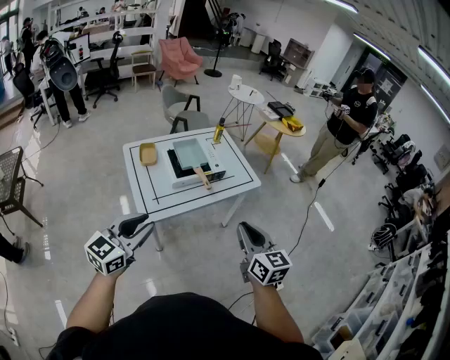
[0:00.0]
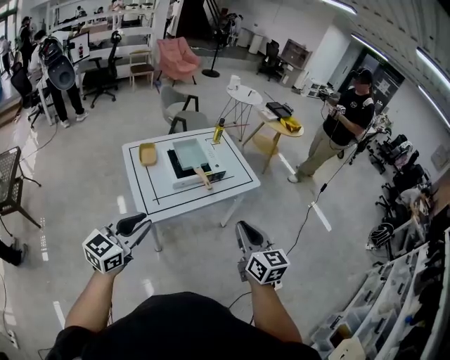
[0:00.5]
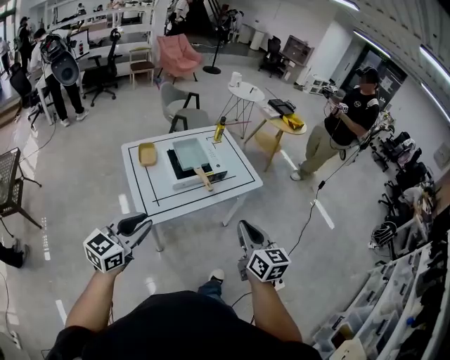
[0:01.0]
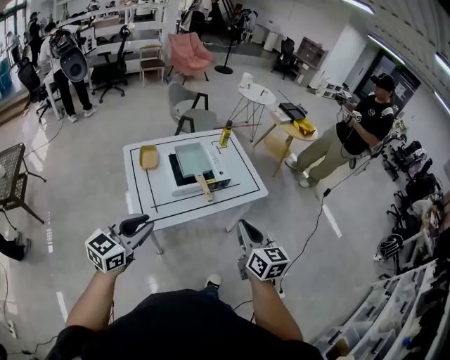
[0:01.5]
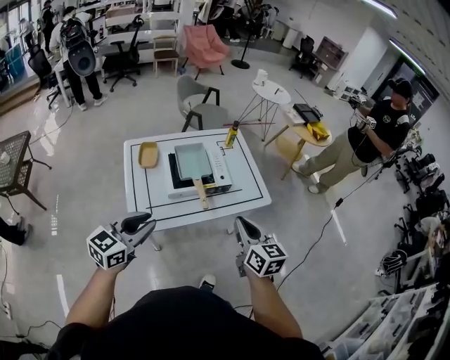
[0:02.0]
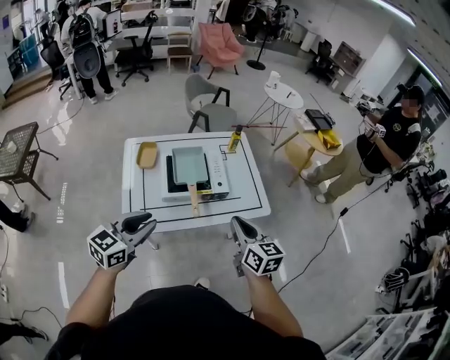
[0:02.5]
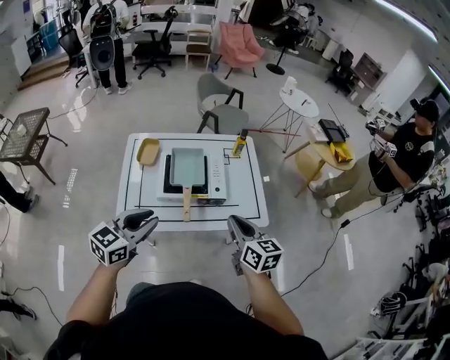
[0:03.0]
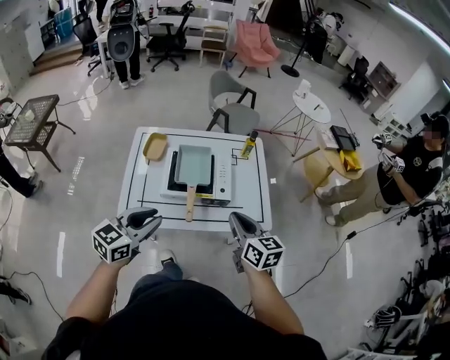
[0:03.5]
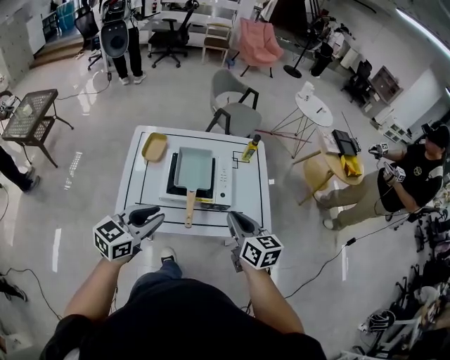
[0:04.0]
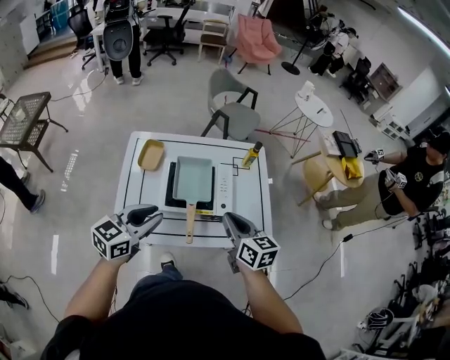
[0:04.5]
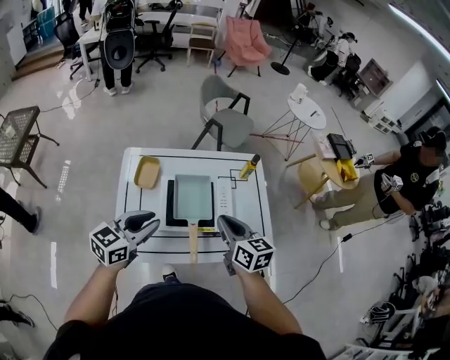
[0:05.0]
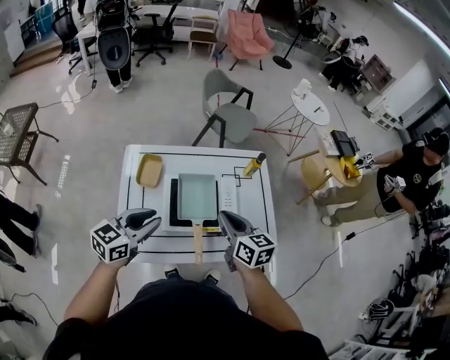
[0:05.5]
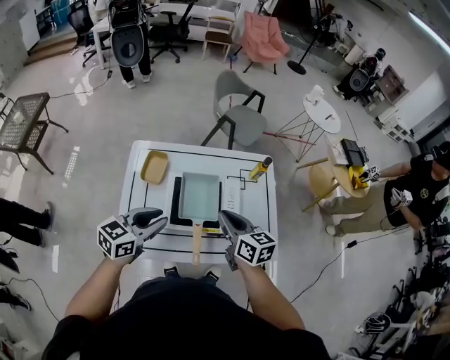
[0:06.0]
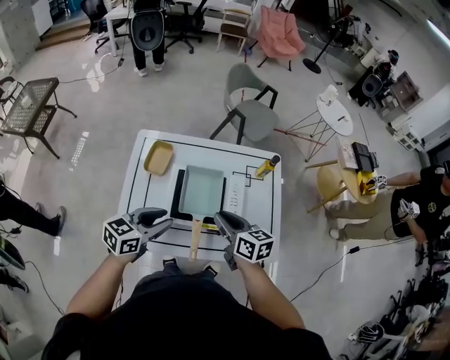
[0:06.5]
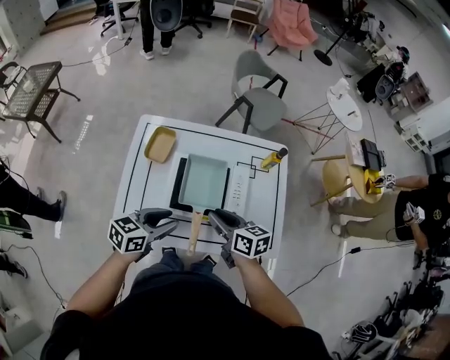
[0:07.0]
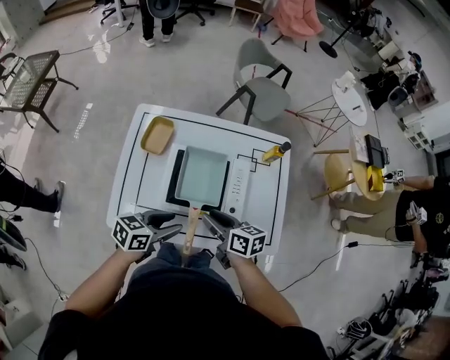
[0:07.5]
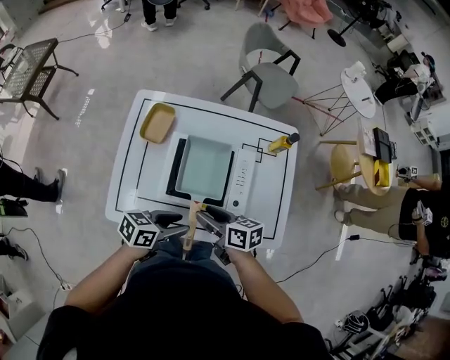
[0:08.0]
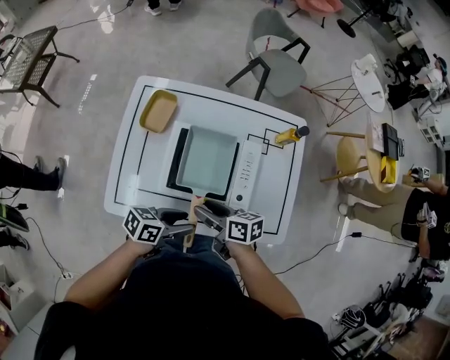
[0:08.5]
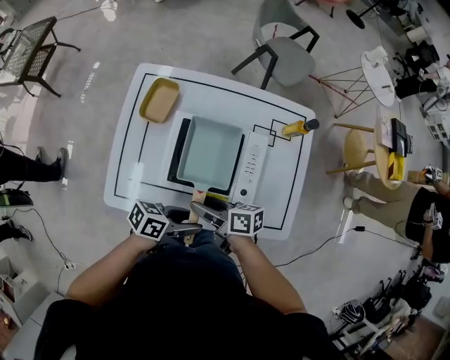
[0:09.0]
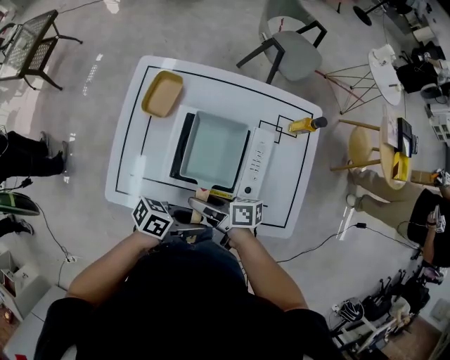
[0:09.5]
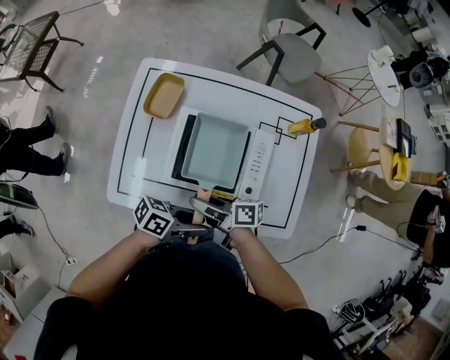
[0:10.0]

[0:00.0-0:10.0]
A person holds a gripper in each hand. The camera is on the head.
0:00.0 to 0:02.0: The left gripper moves forward and downward, some 15 cm, while the right gripper travels forward by some 20 cm.
0:02.0 to 0:04.0: The right gripper shifts some 15 cm forward, and turns by about 20 degrees; the left gripper heads forward and to the right, covering about 15 cm.
0:04.0 to 0:06.0: The right gripper heads forward and to the left, covering approximately 15 cm. The left gripper moves forward, about 15 cm.
0:06.0 to 0:08.0: The grippers both shift downward by approximately 15 cm. The right gripper changes its angle by roughly 30 degrees, and opens its fingers. The left gripper swivels about 30 degrees, and opens its fingers.
0:08.0 to 0:10.0: The right gripper moves about 5 cm, and swivels some 30 degrees, while the left gripper ends up about 5 cm from where it was, and turns by approximately 20 degrees.

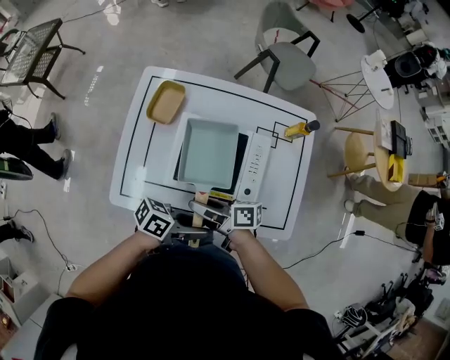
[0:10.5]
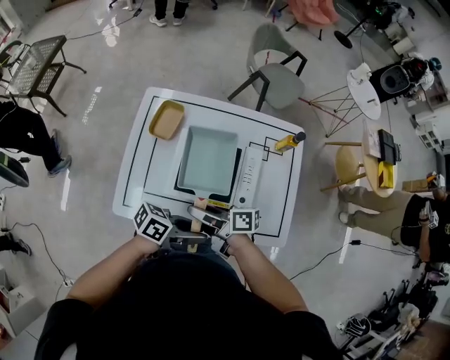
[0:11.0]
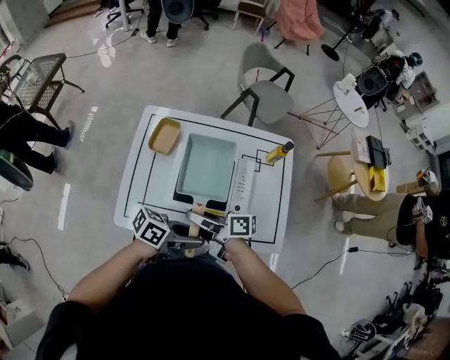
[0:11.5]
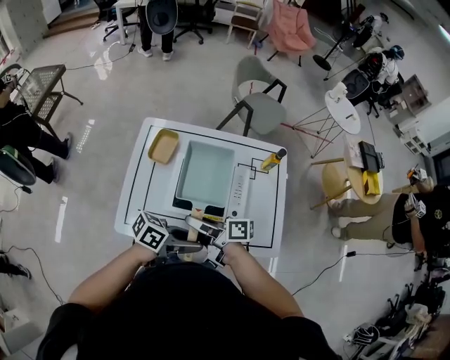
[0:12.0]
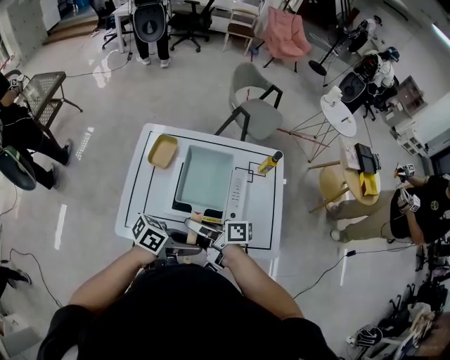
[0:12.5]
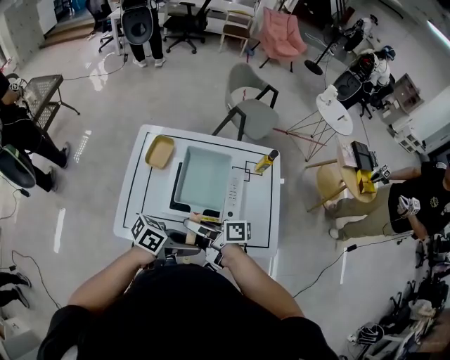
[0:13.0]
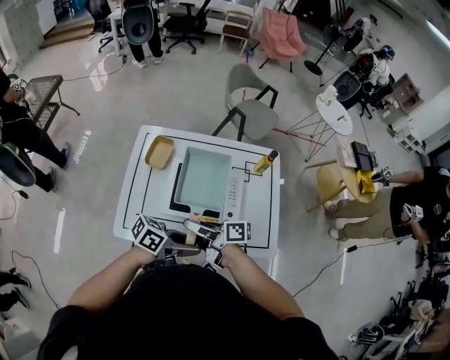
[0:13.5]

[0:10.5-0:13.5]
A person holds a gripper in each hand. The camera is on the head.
0:10.5 to 0:12.0: The grippers both shift upward by some 10 cm.
0:12.0 to 0:13.5: There are only small adjustments of the grippers.

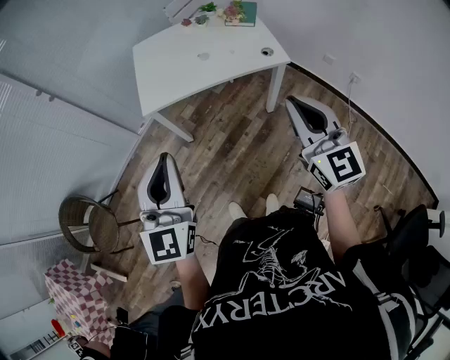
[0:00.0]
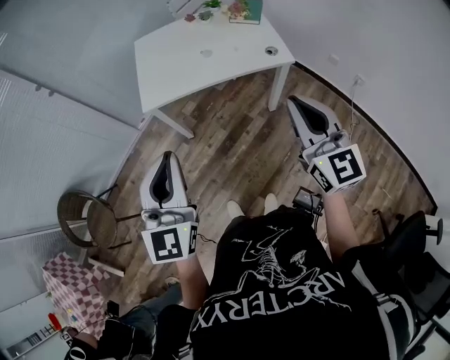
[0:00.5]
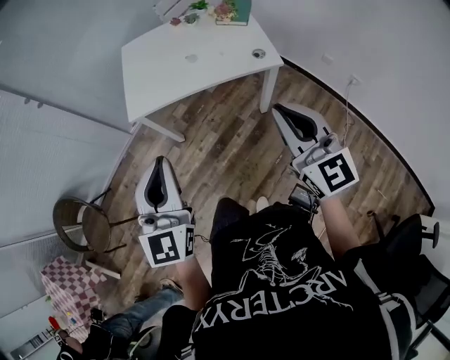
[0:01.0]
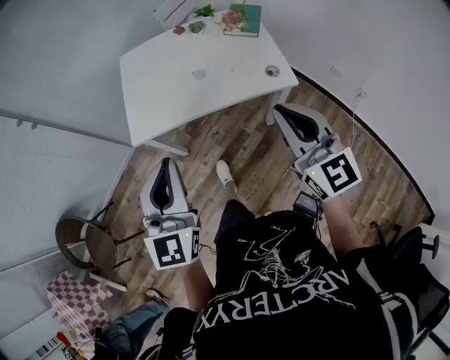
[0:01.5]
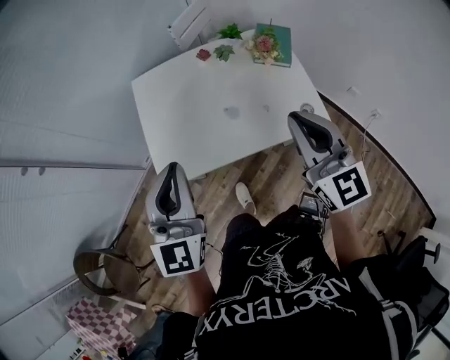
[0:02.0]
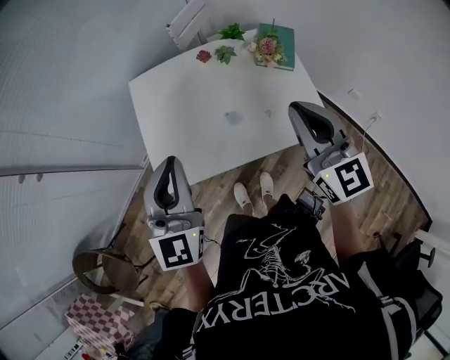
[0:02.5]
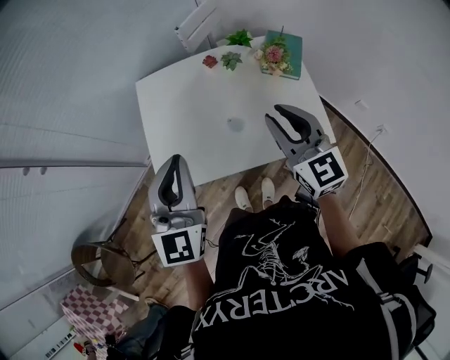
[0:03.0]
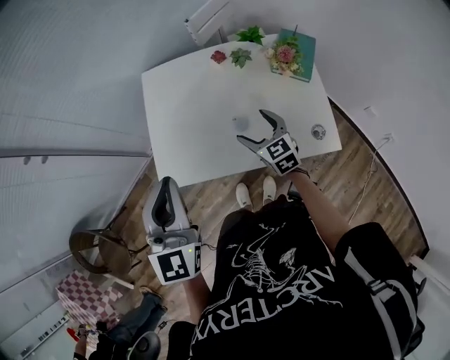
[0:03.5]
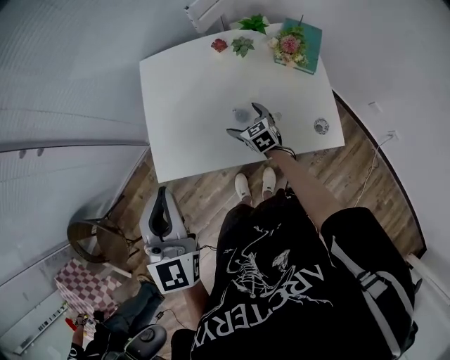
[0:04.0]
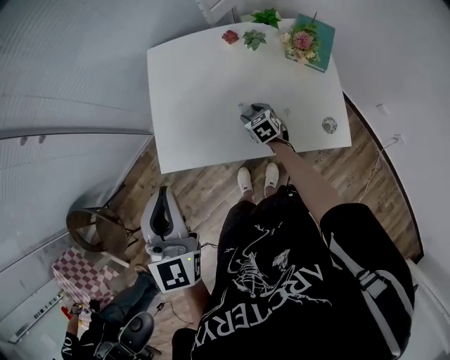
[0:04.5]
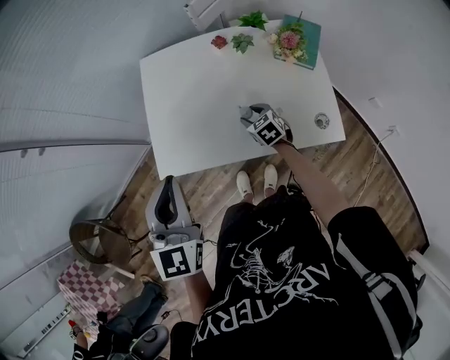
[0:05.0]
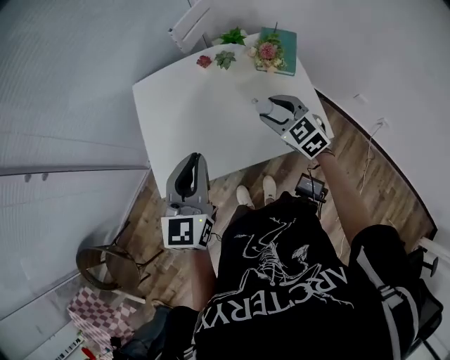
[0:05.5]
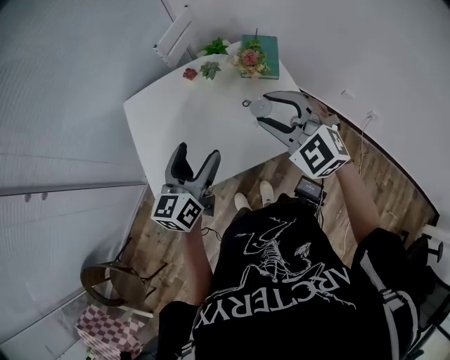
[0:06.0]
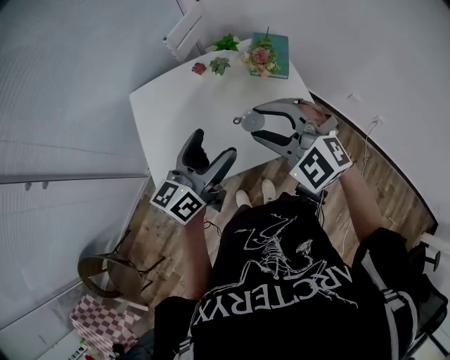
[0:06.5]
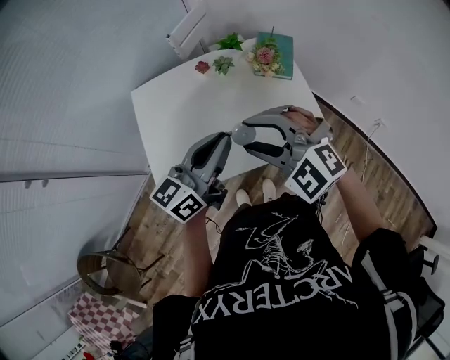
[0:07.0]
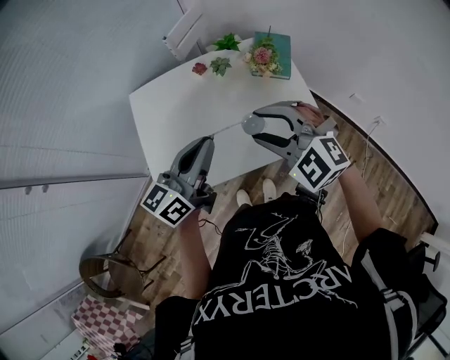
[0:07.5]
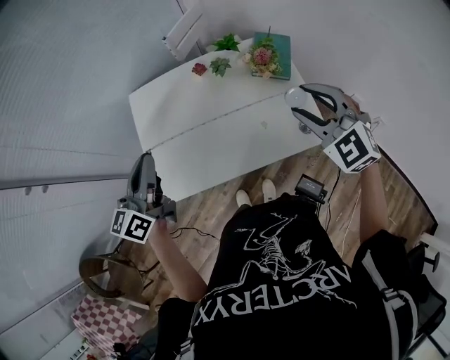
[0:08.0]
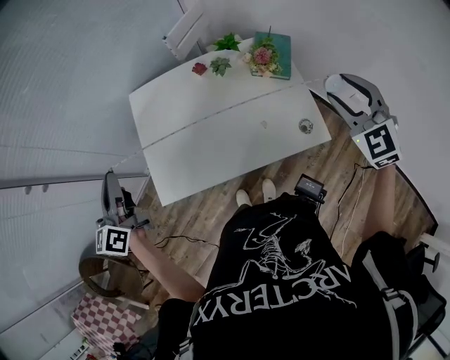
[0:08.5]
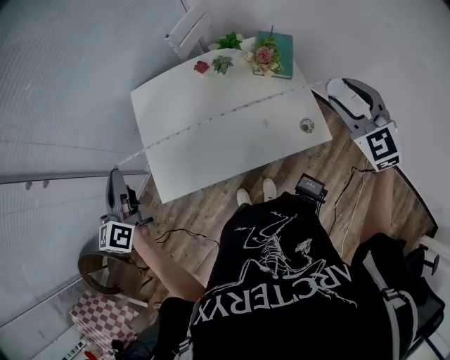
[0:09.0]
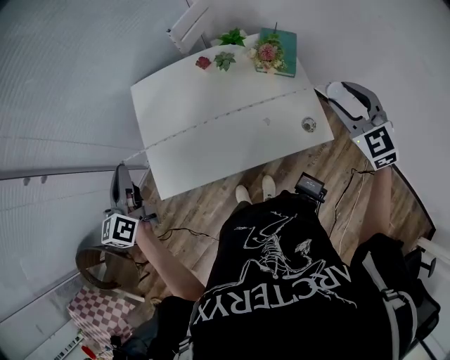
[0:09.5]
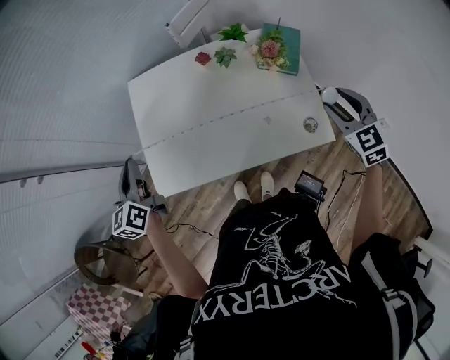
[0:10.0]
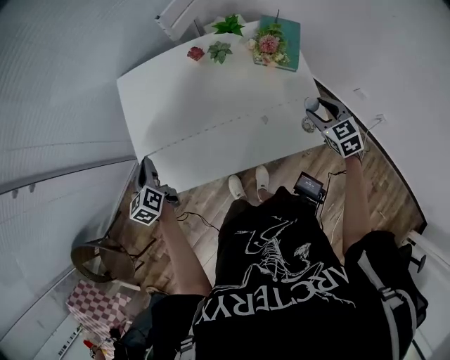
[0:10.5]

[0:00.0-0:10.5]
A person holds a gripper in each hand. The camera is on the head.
0:00.0 to 0:02.0: Both grippers move forward, approximately 40 cm.
0:02.0 to 0:04.0: The right gripper heads downward and forward, covering about 40 cm, angles its fingers downward, by about 40 degrees, and opens its fingers.
0:04.0 to 0:06.5: The right gripper heads upward, covering approximately 35 cm, twists about 50 degrees counterclockwise, seen from behind, and closes up, while the left gripper heads to the right and forward, covering approximately 15 cm, turns by some 60 degrees, and opens.
0:06.5 to 0:08.5: The right gripper shifts approximately 20 cm to the right, and rotates about 30 degrees; the left gripper travels to the left by some 25 cm, rotates about 40 degrees, and closes up.
0:08.5 to 0:10.5: Both grippers travel together downward, about 25 cm. The right gripper swivels some 30 degrees, while the left gripper swivels approximately 30 degrees.

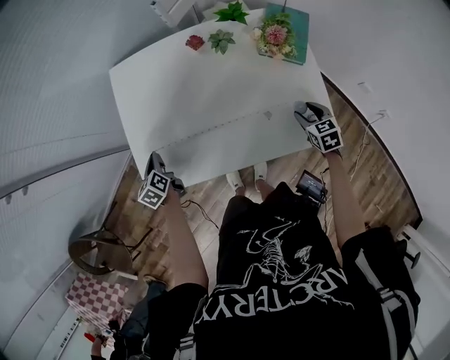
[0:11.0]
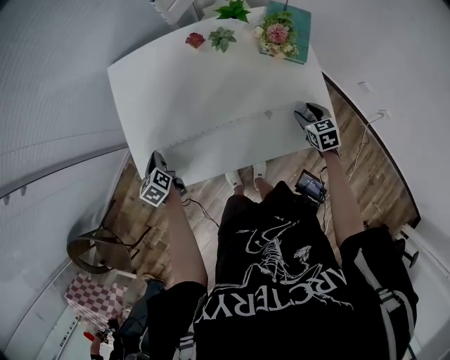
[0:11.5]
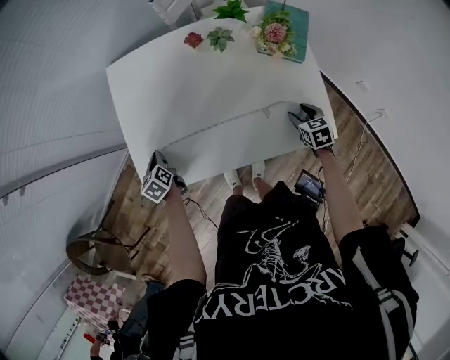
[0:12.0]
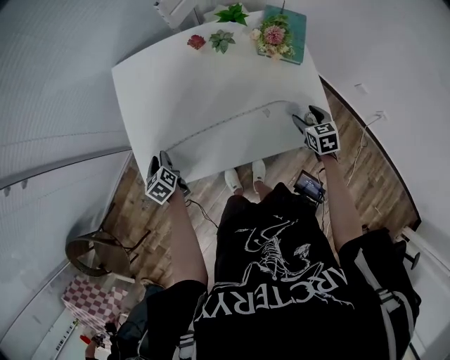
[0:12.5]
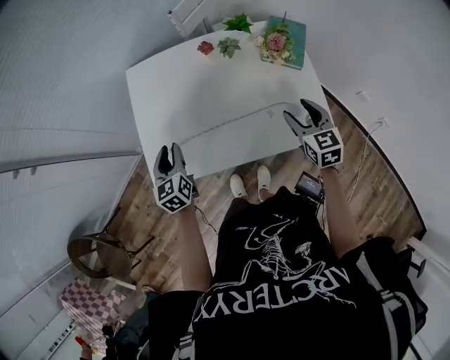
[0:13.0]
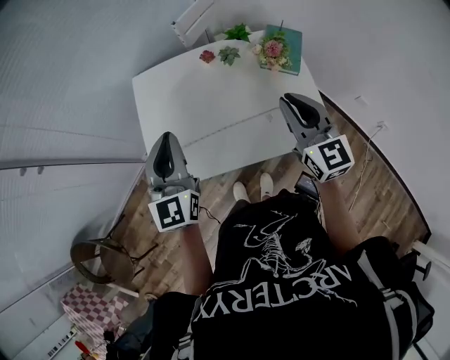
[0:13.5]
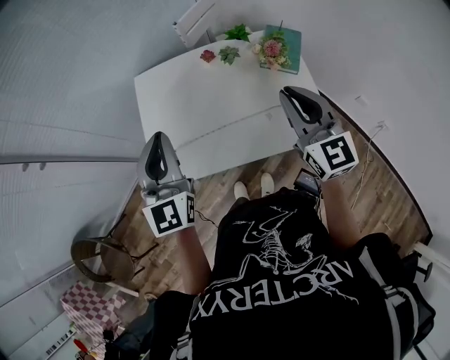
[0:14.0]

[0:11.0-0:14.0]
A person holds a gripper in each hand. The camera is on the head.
0:11.0 to 0:12.5: The grippers move only a little.
0:12.5 to 0:14.0: The right gripper moves upward and to the left, about 40 cm, tips its fingers upward by some 50 degrees, and closes up. The left gripper moves upward, approximately 40 cm, and angles its fingers upward, by some 50 degrees.
